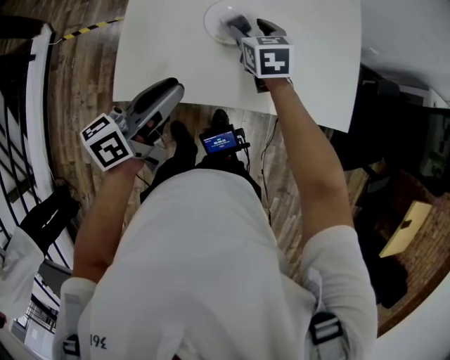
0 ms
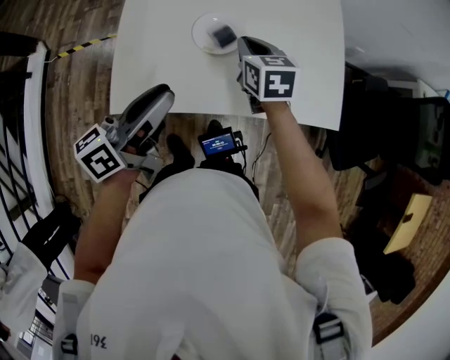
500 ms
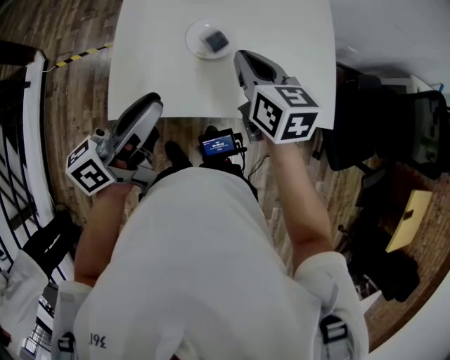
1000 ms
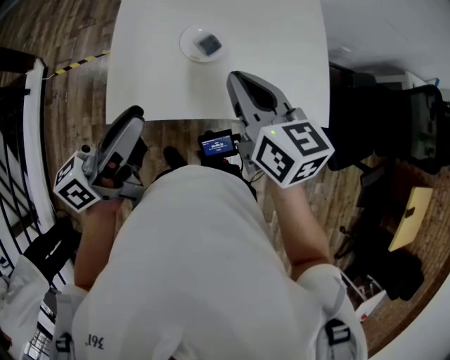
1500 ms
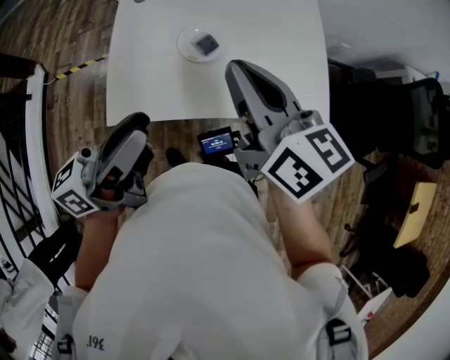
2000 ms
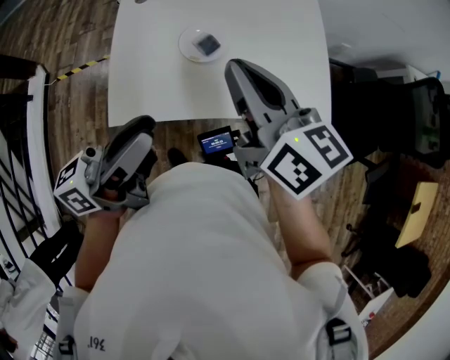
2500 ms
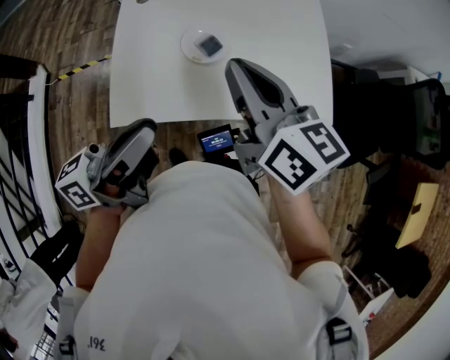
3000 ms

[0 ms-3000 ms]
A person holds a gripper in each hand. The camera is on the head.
0 ms to 1500 ms: The right gripper shifts approximately 25 cm upward and backward, changes its angle by approximately 30 degrees, and closes its fingers. Meanwhile the left gripper is displaced upward and backward by approximately 15 cm.
1500 ms to 3000 ms: The right gripper moves upward, roughly 5 cm.

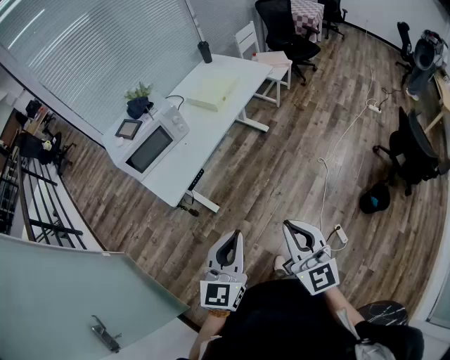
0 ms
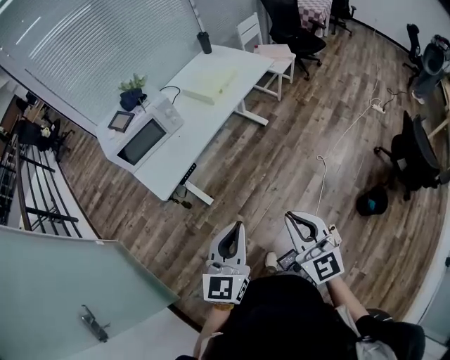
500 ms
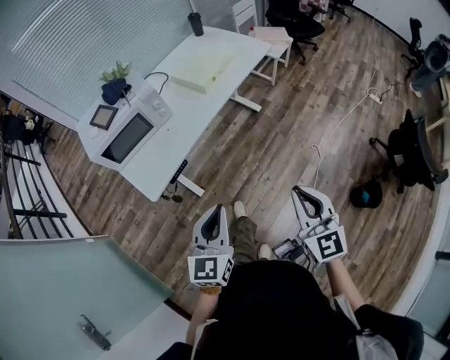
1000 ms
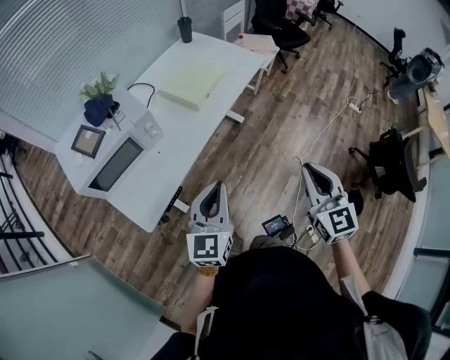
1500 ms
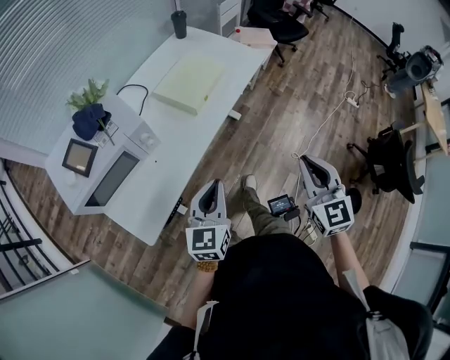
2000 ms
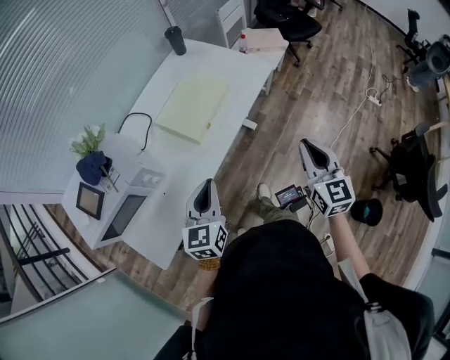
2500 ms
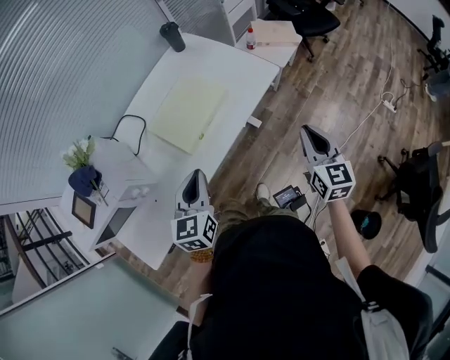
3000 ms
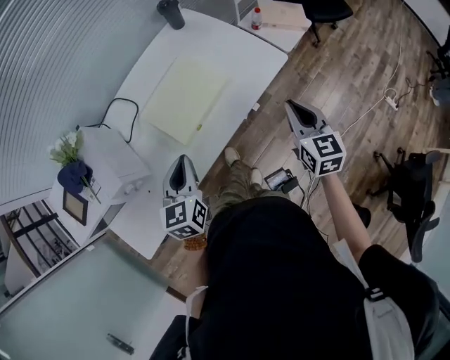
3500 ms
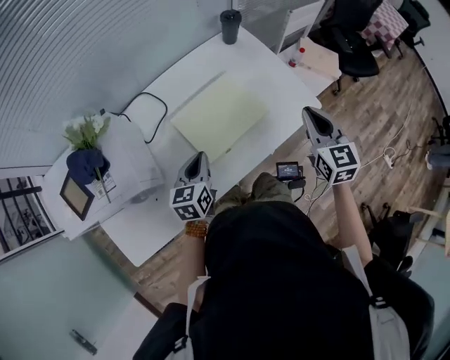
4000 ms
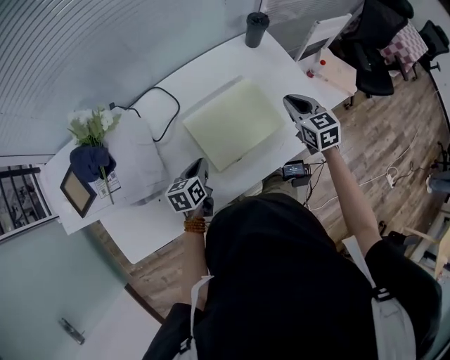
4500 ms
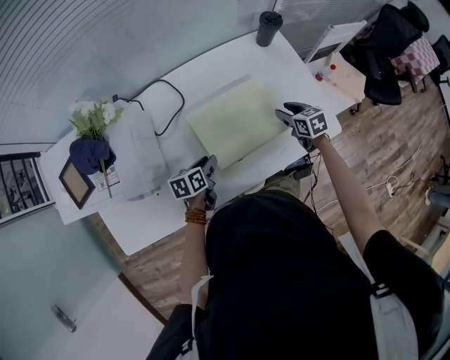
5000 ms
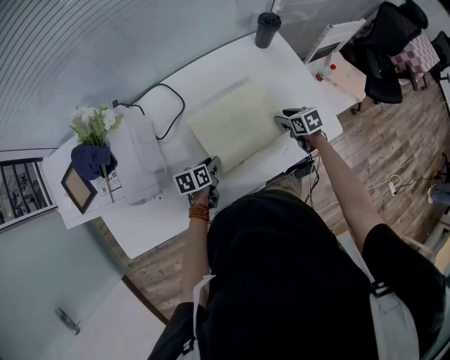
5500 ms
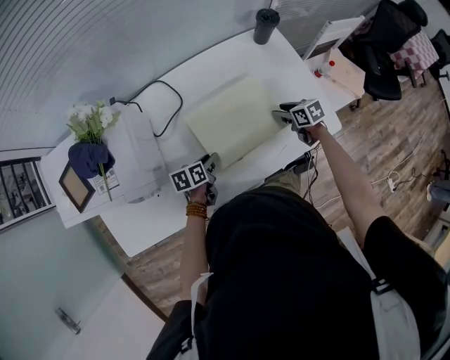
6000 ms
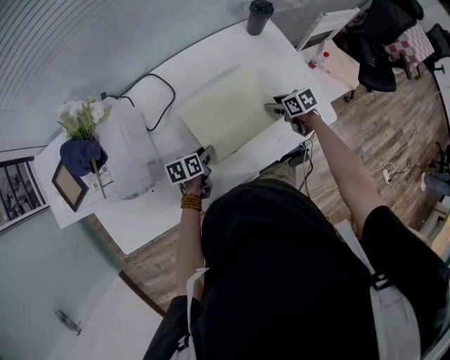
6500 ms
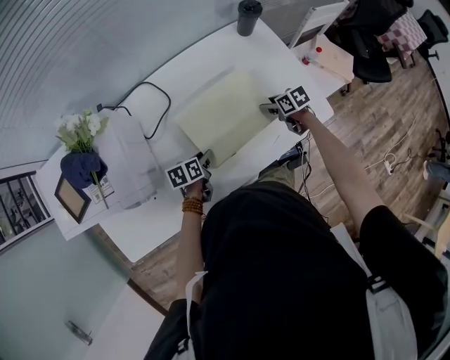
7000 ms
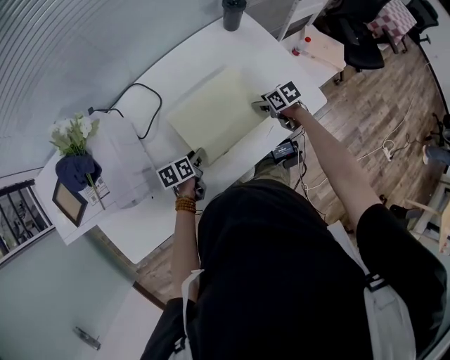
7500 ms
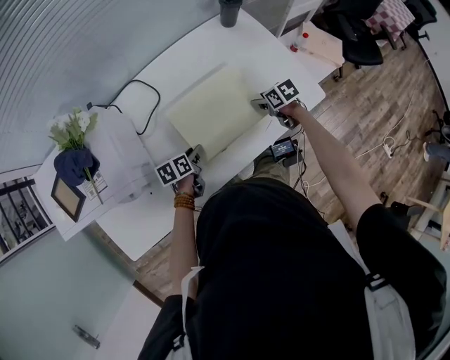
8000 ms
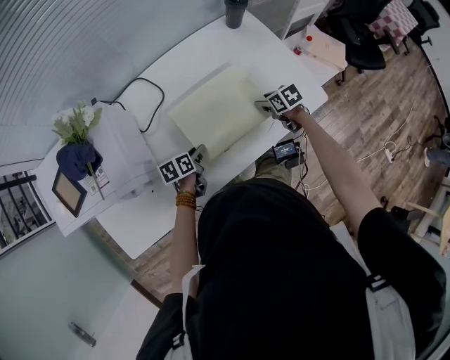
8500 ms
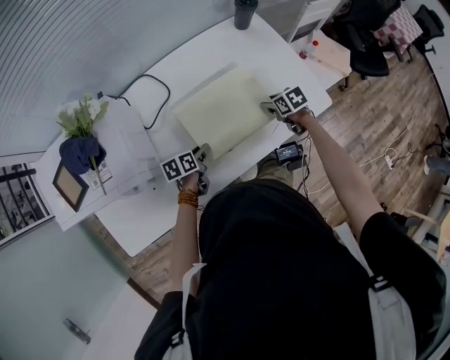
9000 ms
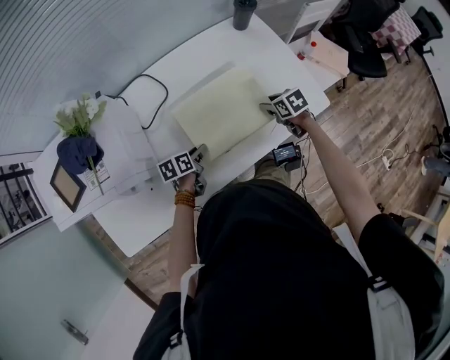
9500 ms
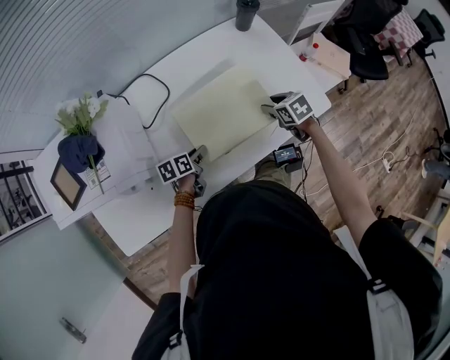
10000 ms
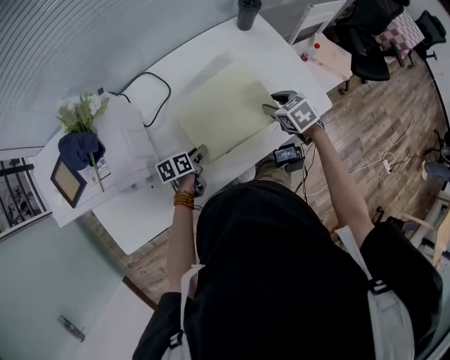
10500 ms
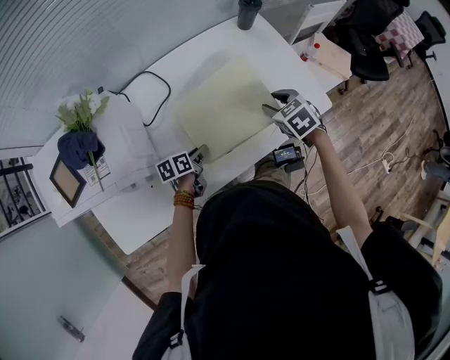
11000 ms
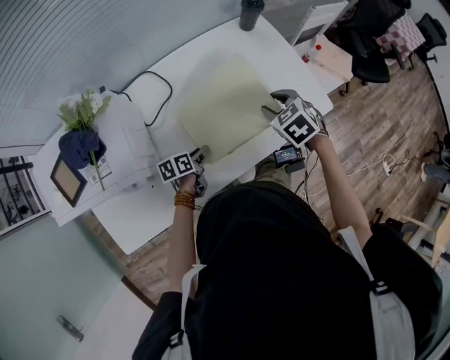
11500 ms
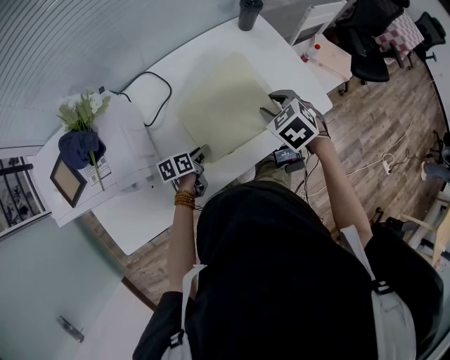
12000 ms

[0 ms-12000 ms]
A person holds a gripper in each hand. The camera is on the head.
0 ms to 2000 ms: The two grippers travel together, forward, approximately 40 cm. The right gripper swivels approximately 20 degrees.
2000 ms to 4000 ms: Both grippers move forward, about 40 cm. The right gripper rotates approximately 20 degrees. Meanwhile the left gripper turns by roughly 30 degrees.
4000 ms to 6000 ms: The right gripper shifts some 30 cm downward and forward, turns by some 50 degrees, and opens. Meanwhile the left gripper heads downward, covering roughly 15 cm, swivels some 40 degrees, and opens up.
6000 ms to 8000 ms: The grippers make only small movements.
8000 ms to 10000 ms: The right gripper moves upward, some 5 cm.
10000 ms to 12000 ms: The right gripper moves upward, approximately 10 cm, and swivels some 30 degrees.

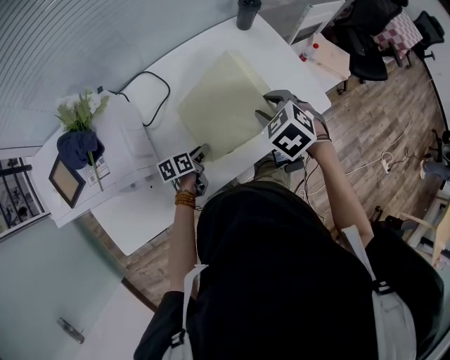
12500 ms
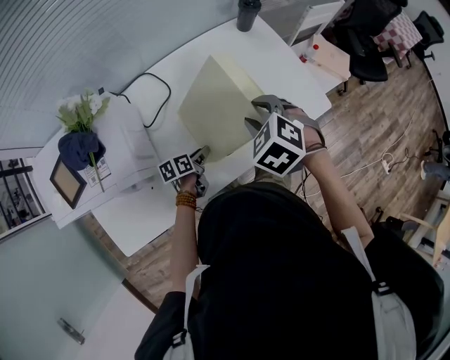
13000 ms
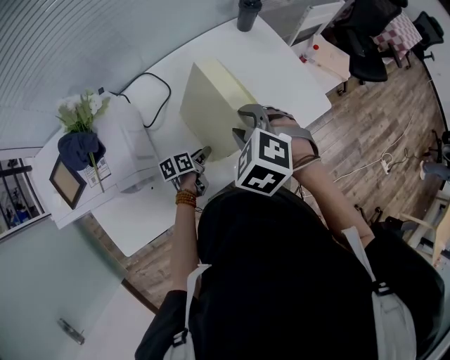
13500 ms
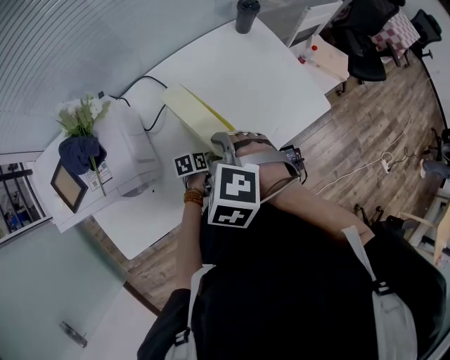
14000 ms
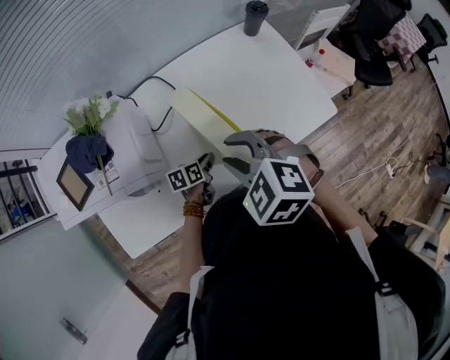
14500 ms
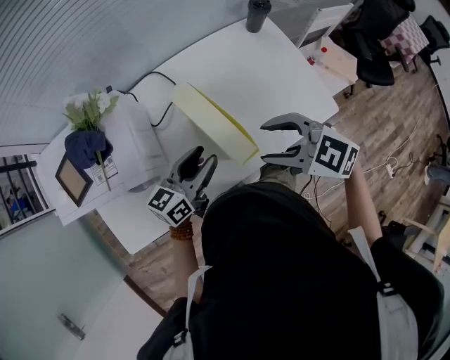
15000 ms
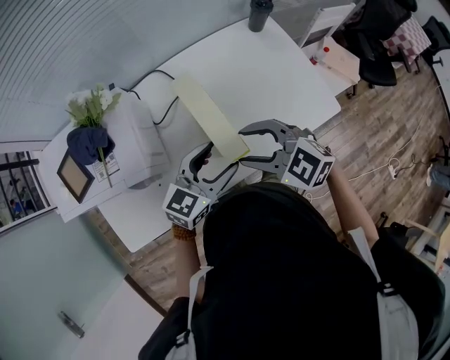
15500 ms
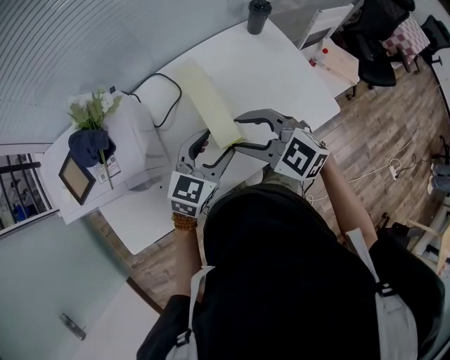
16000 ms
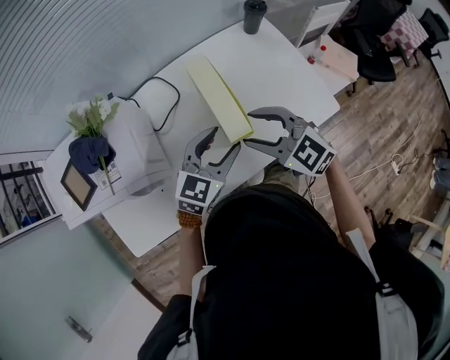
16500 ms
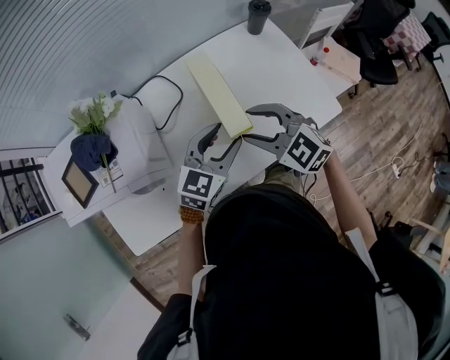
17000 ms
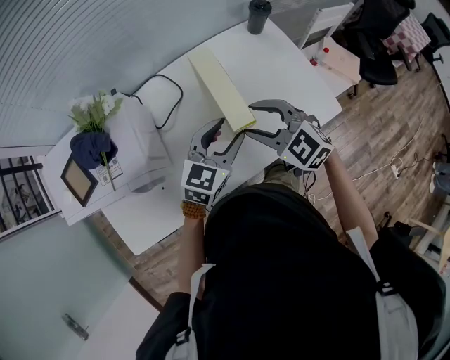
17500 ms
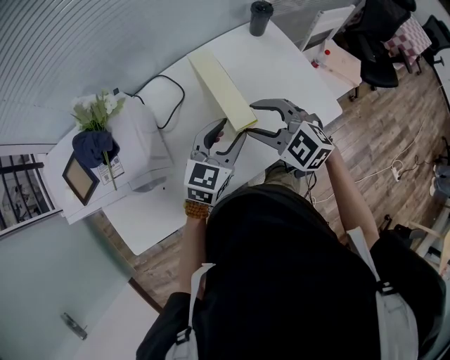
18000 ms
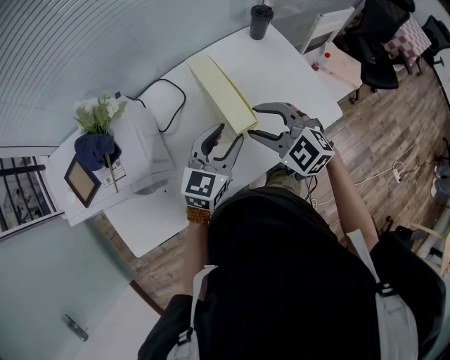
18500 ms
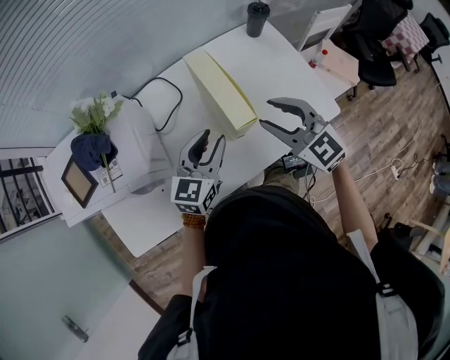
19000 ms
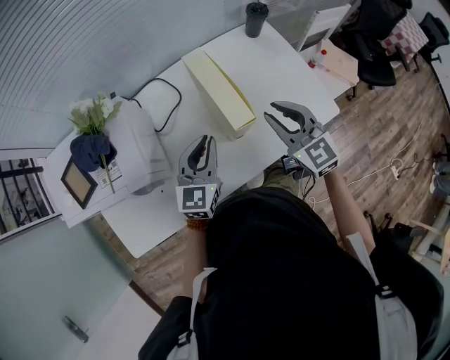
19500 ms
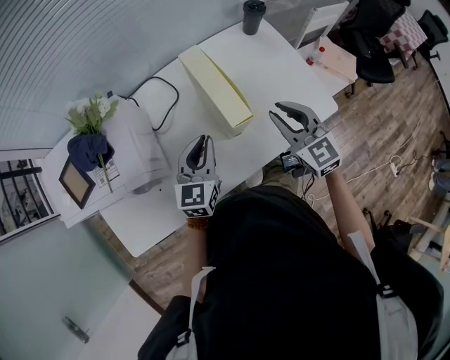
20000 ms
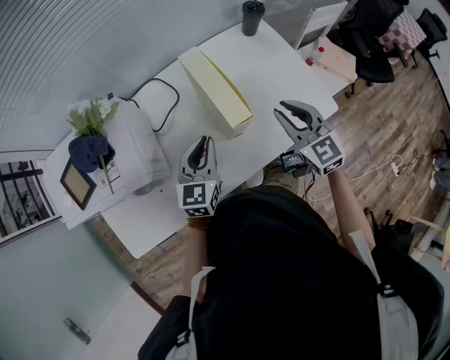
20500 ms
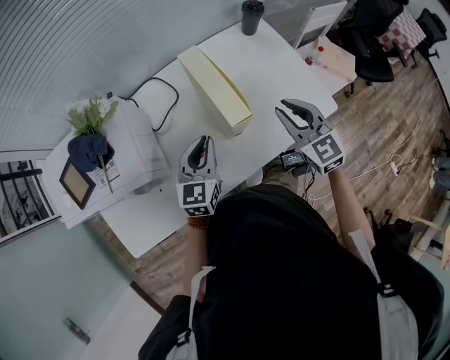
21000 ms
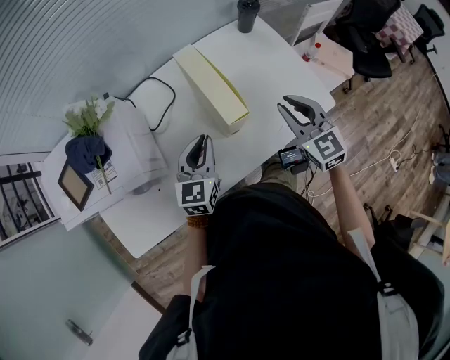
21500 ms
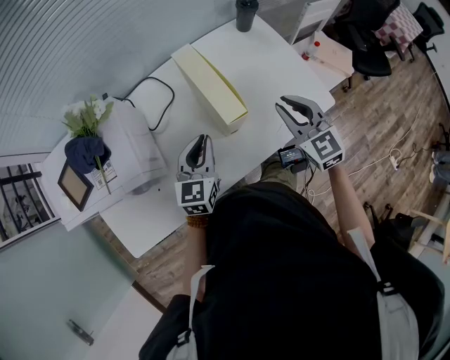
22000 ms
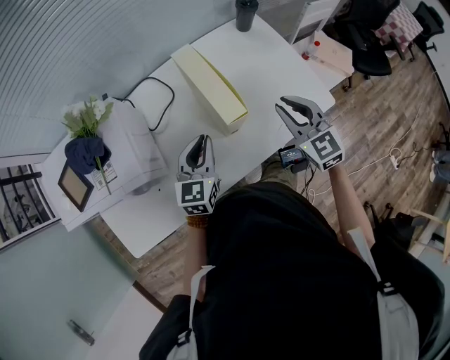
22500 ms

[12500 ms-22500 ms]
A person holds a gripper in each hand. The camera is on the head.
12500 ms to 14500 ms: The right gripper travels to the left, backward and upward by about 20 cm, and changes its angle by approximately 30 degrees.
14500 ms to 16500 ms: The left gripper goes some 25 cm upward, twists roughly 60 degrees clockwise, seen from behind, and opens its fingers, while the right gripper goes left and right, about 10 cm each way, reversing 2 times, rotates about 30 degrees, and opens.
16500 ms to 18500 ms: The grippers stay close to where they were, moving slightly.
18500 ms to 20500 ms: The right gripper is displaced to the right by about 10 cm, swivels approximately 30 degrees, and closes up. The left gripper travels to the left by approximately 5 cm, and closes its fingers.
20500 ms to 22500 ms: The grippers make only small movements.

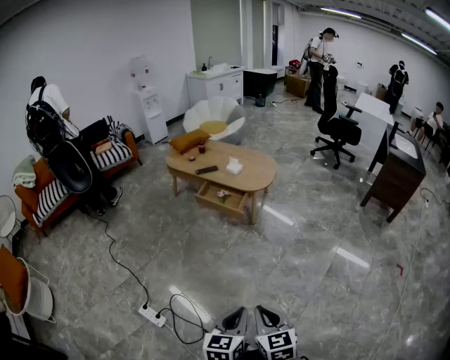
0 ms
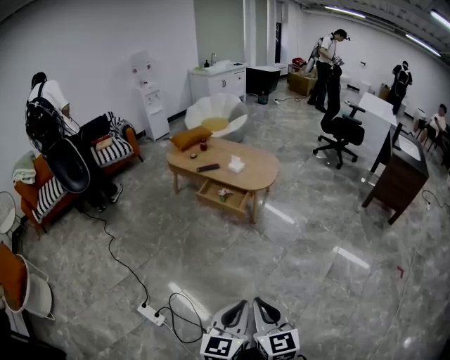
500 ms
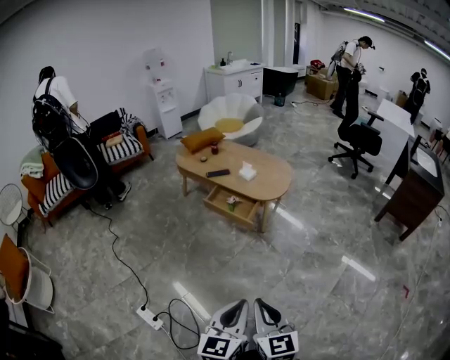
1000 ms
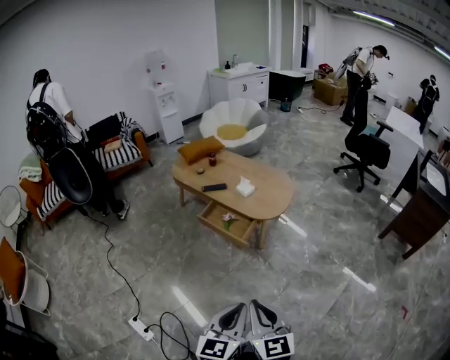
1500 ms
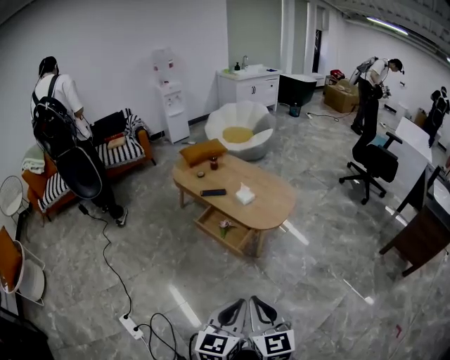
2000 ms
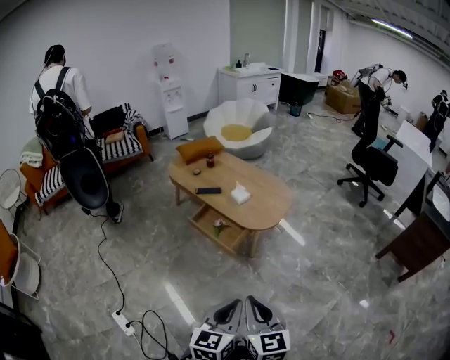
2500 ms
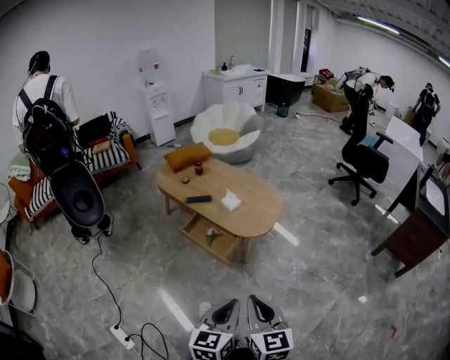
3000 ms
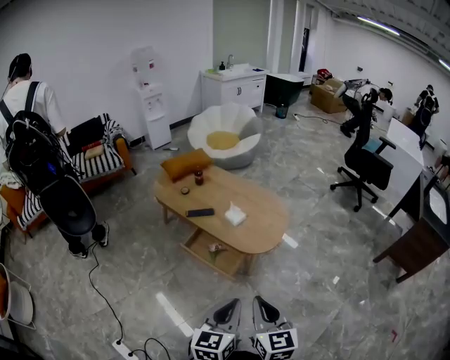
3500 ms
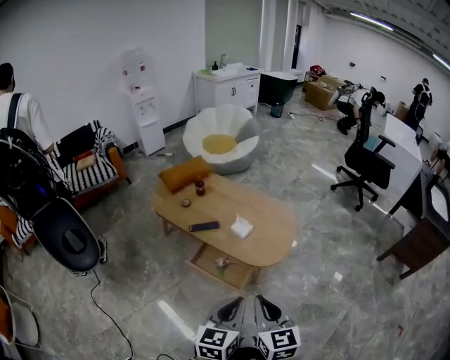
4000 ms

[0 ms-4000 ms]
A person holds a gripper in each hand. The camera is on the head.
0 ms to 2000 ms: Both grippers travel together forward, roughly 30 cm.
2000 ms to 4000 ms: The two grippers go roughly 25 cm forward.
